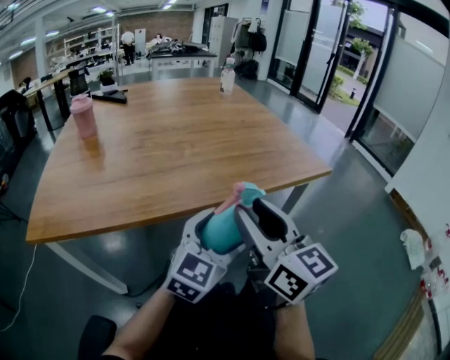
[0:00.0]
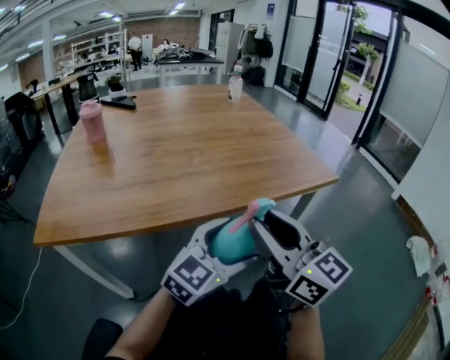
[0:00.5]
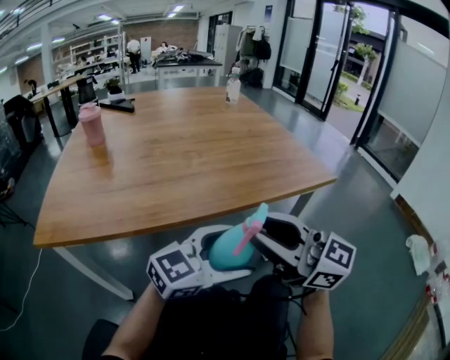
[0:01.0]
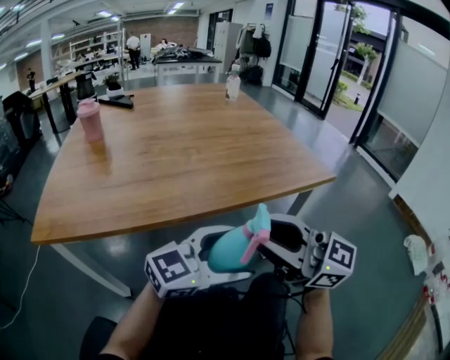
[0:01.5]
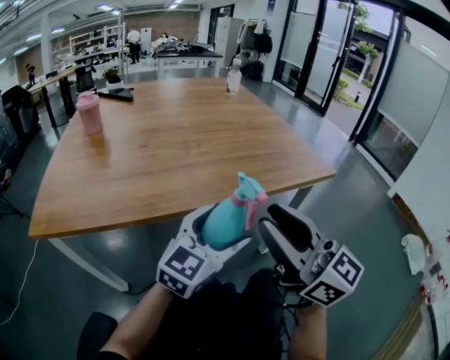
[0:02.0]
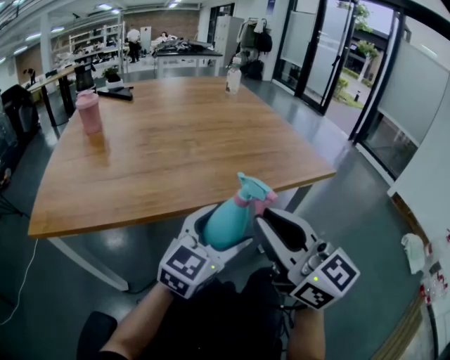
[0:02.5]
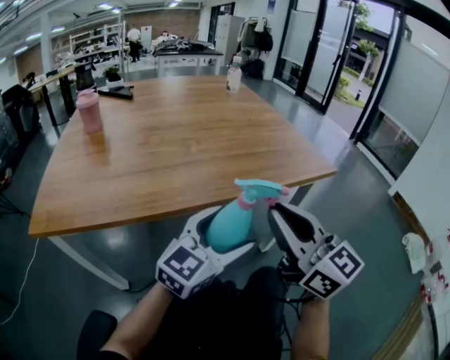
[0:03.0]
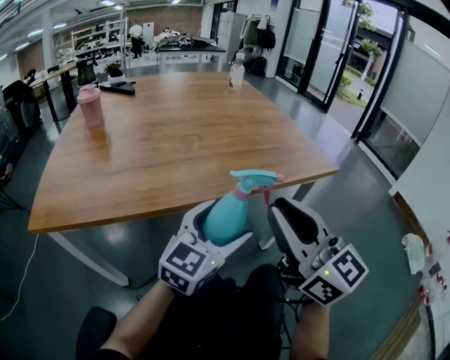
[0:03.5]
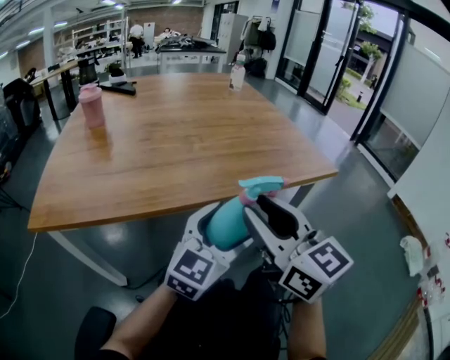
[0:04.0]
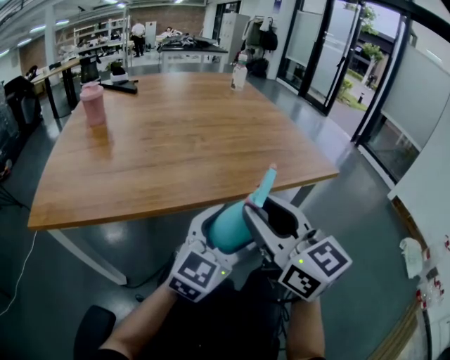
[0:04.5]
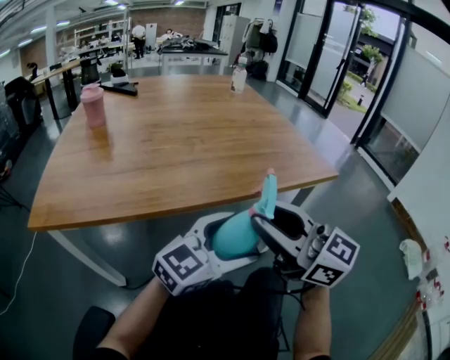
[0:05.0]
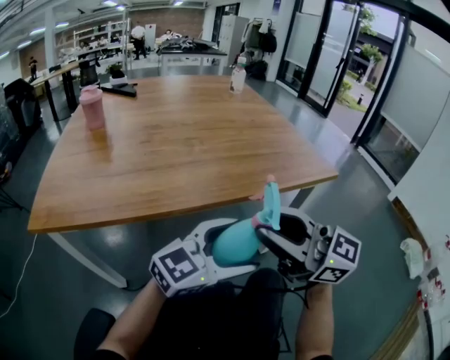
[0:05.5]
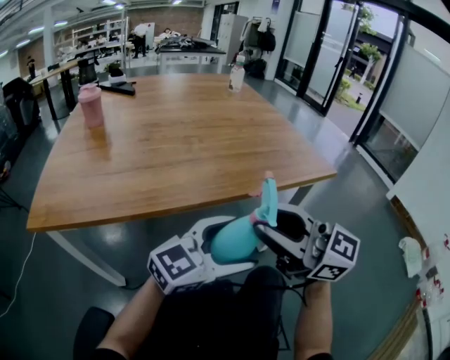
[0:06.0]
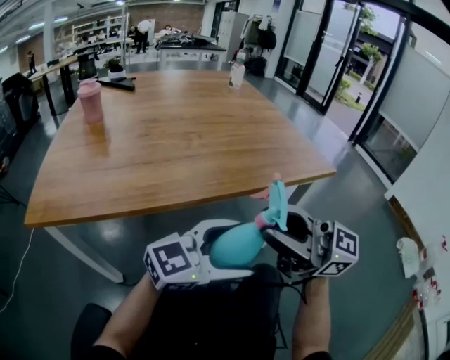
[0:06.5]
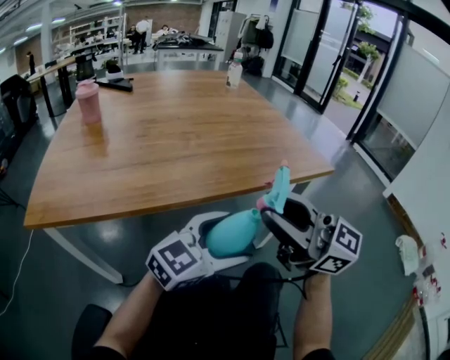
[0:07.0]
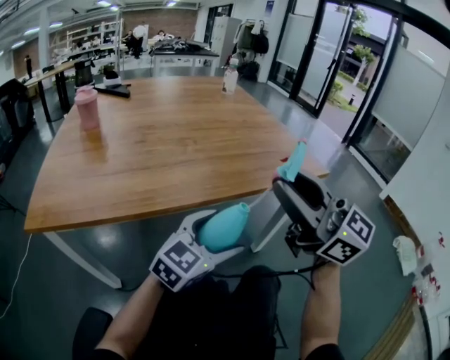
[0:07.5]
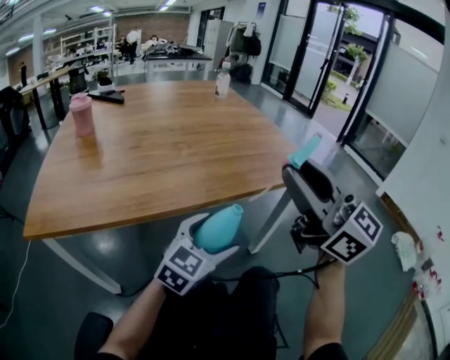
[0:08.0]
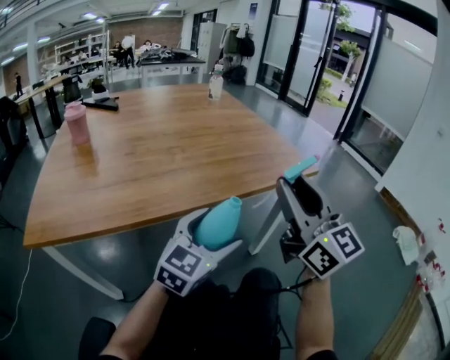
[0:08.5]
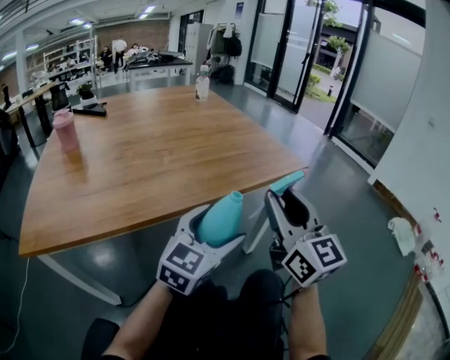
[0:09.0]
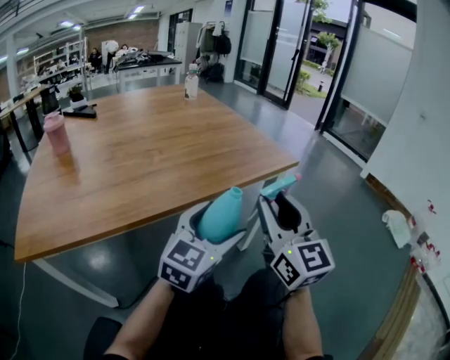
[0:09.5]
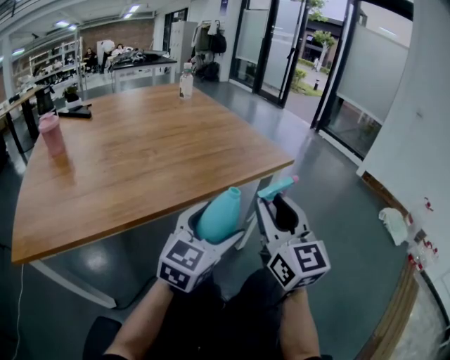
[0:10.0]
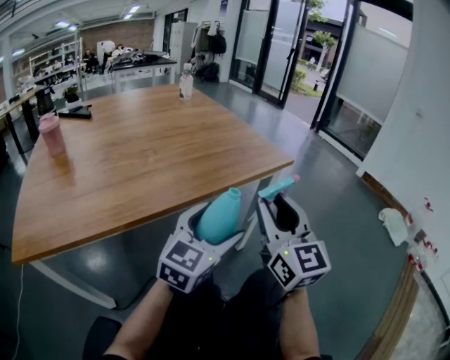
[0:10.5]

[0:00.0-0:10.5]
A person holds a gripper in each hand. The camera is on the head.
0:00.0 to 0:02.0: The right gripper changes place by about 5 cm.
0:02.0 to 0:04.0: The grippers make only small movements.
0:04.0 to 0:06.5: The right gripper swivels some 40 degrees, while the left gripper shifts by approximately 5 cm, and rotates roughly 40 degrees.
0:06.5 to 0:08.5: The left gripper moves approximately 5 cm, and swivels some 30 degrees. The right gripper moves roughly 10 cm, and rotates some 50 degrees.
0:08.5 to 0:10.5: The right gripper shifts some 5 cm downward, and swivels roughly 20 degrees. Meanwhile the left gripper shifts roughly 5 cm to the right.

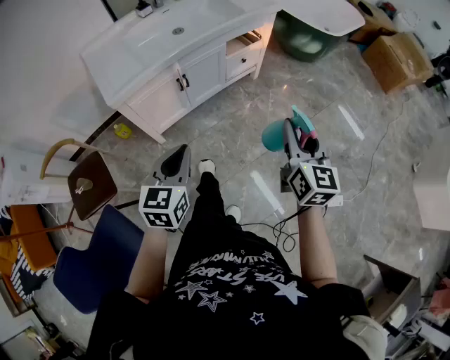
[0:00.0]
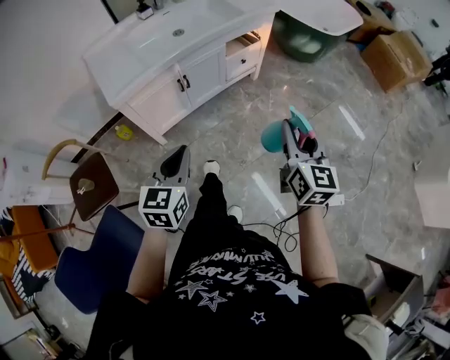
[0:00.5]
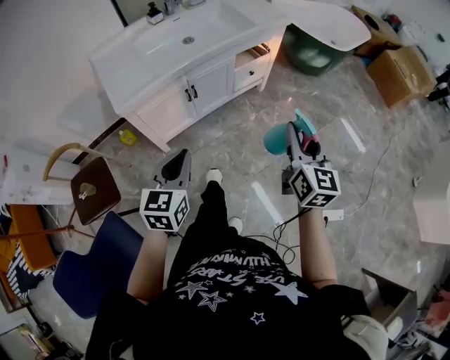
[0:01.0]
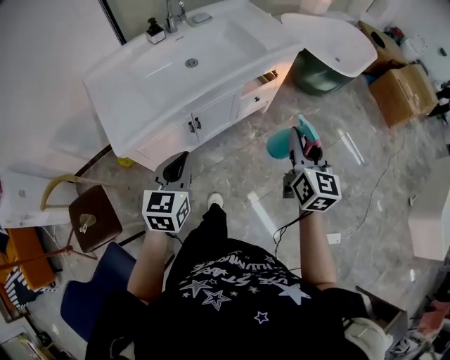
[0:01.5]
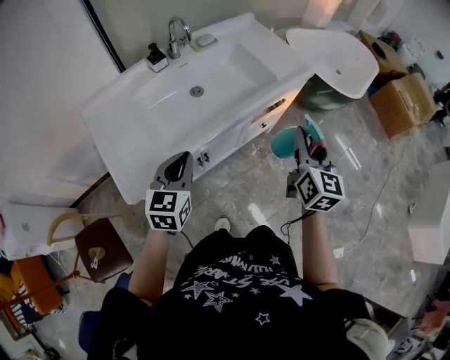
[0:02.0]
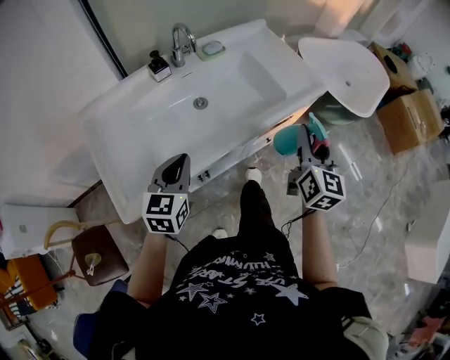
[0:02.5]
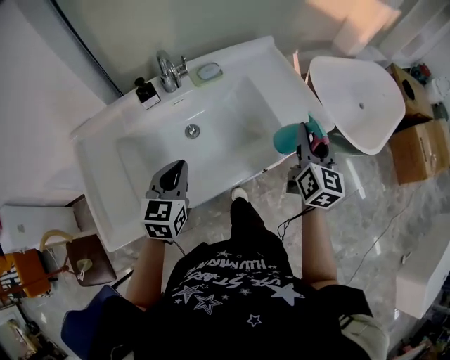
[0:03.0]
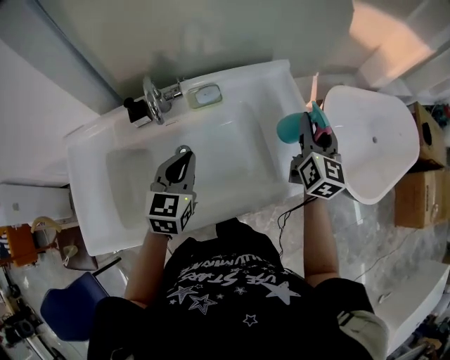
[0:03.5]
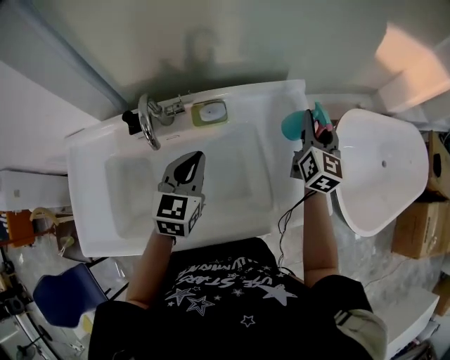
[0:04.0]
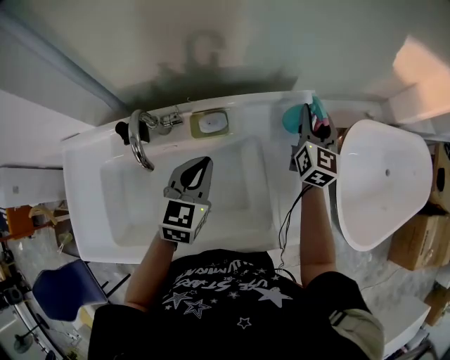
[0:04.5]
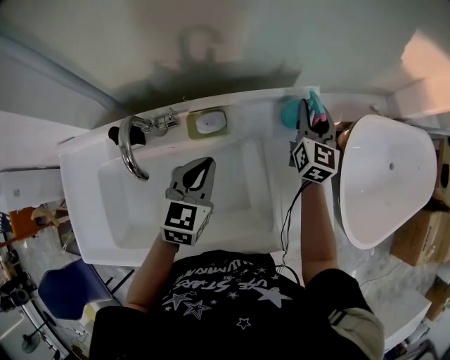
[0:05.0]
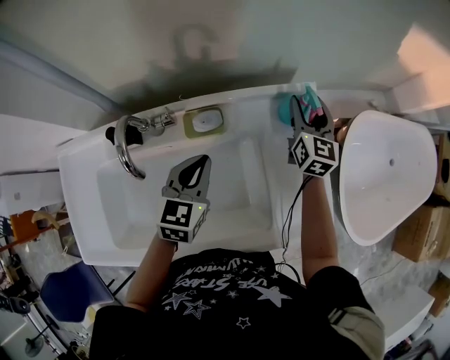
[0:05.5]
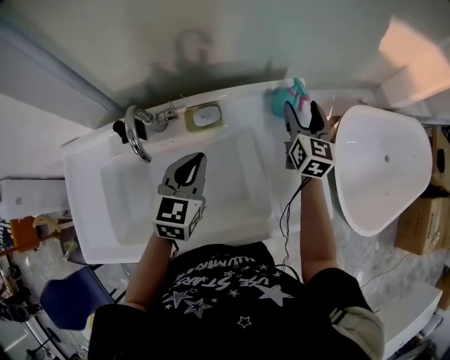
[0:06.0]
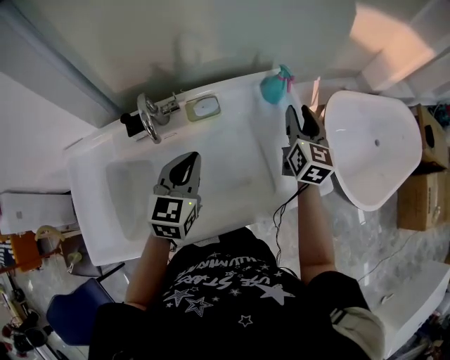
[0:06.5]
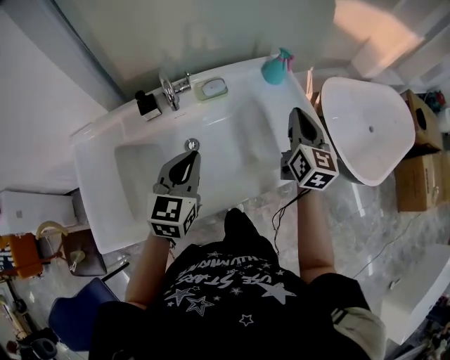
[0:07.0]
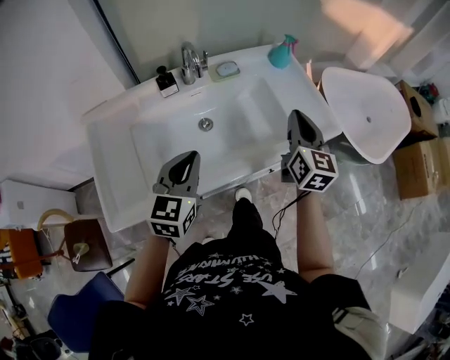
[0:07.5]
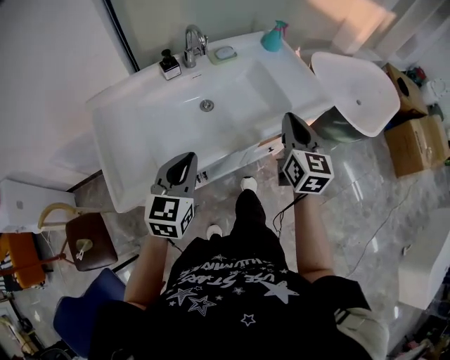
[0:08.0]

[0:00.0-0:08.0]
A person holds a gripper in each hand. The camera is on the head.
0:00.0 to 0:02.0: The right gripper goes approximately 35 cm forward; the left gripper is displaced forward and to the left by about 40 cm.
0:02.0 to 0:04.0: The pair of grippers is taken forward, roughly 60 cm. The right gripper swivels about 20 degrees; the left gripper changes its angle by approximately 20 degrees.
0:04.0 to 0:06.0: The right gripper opens.
0:06.0 to 0:08.0: Both grippers are carried backward, approximately 50 cm. The right gripper closes.

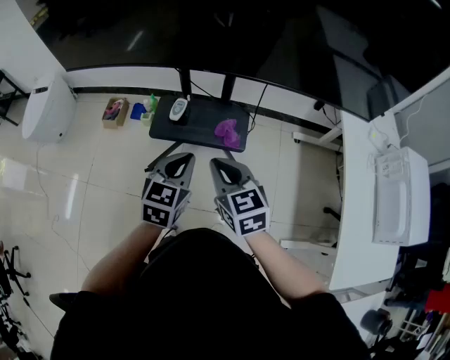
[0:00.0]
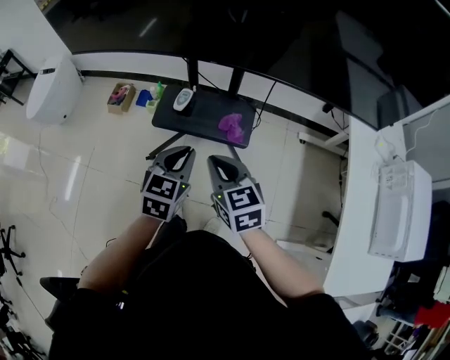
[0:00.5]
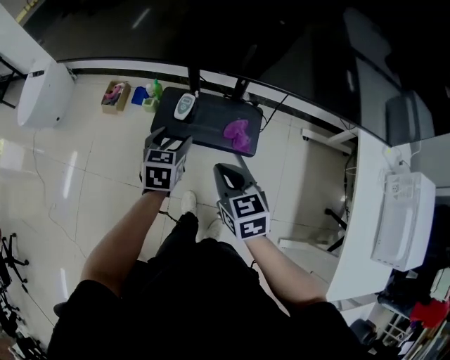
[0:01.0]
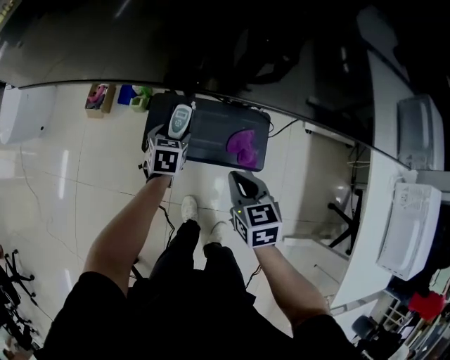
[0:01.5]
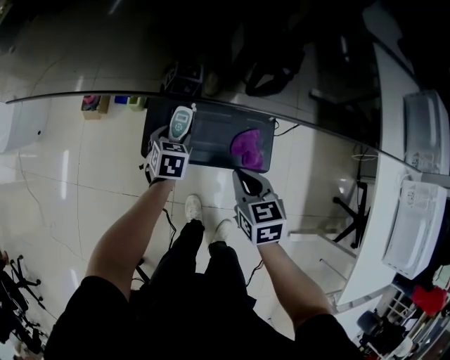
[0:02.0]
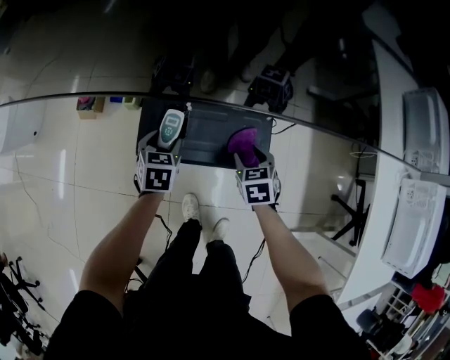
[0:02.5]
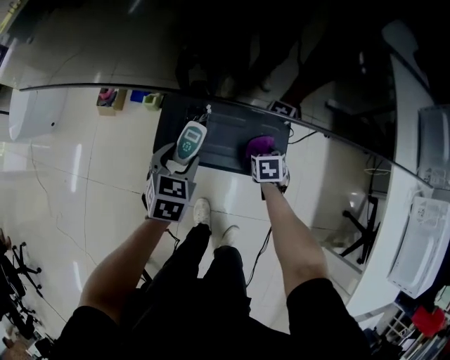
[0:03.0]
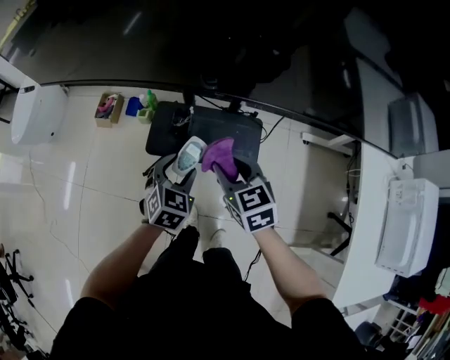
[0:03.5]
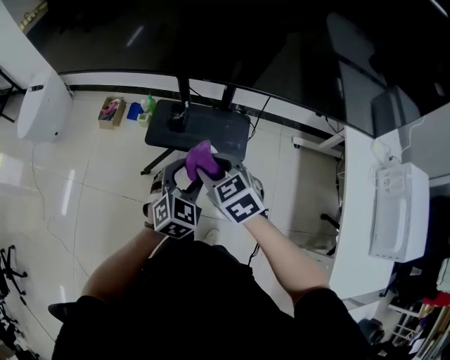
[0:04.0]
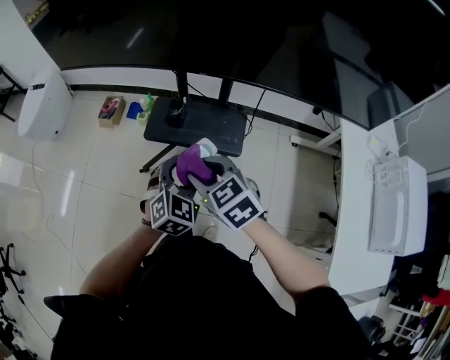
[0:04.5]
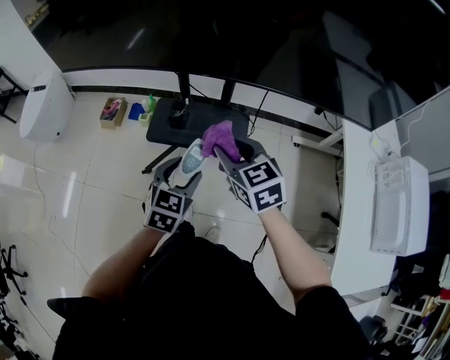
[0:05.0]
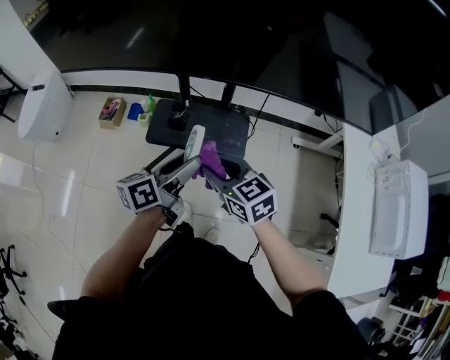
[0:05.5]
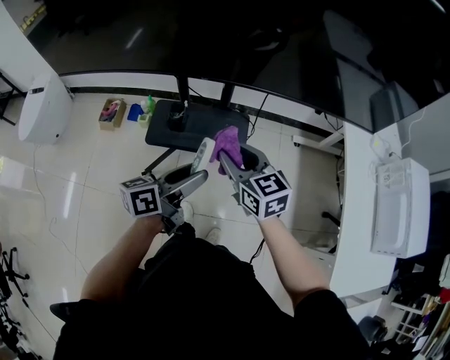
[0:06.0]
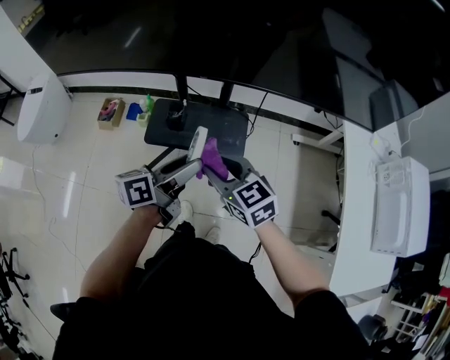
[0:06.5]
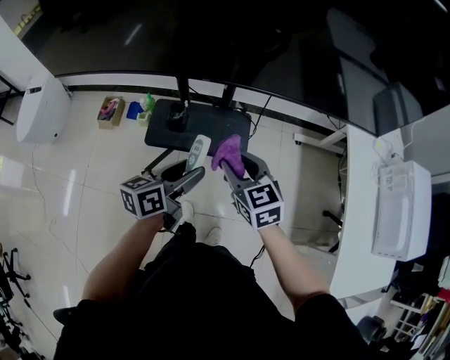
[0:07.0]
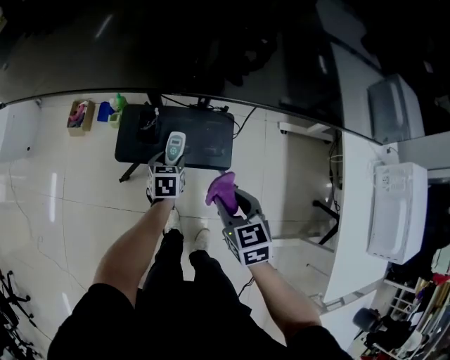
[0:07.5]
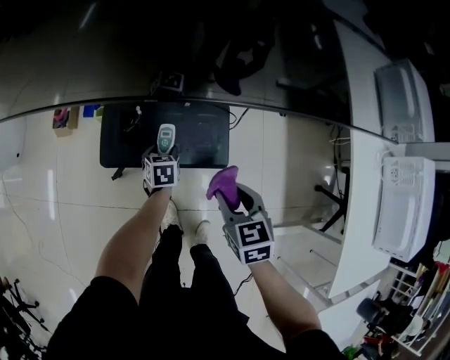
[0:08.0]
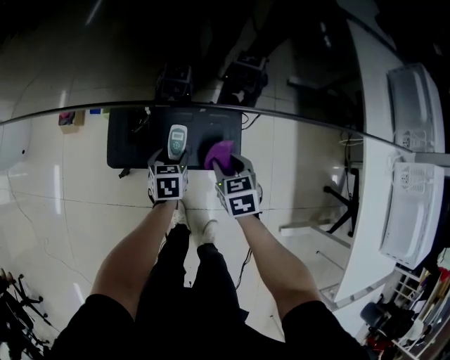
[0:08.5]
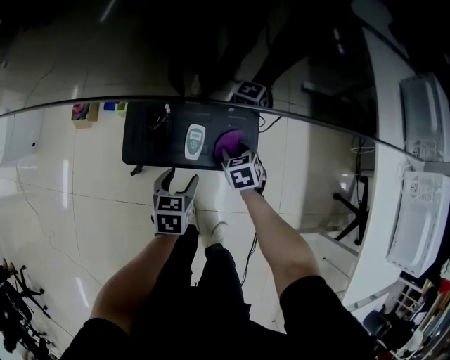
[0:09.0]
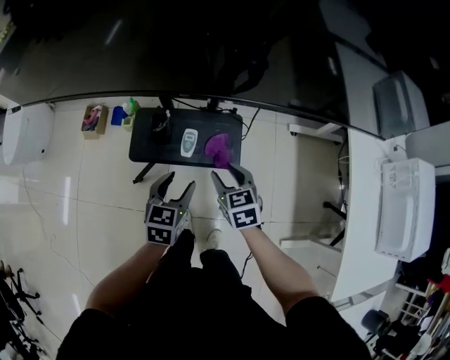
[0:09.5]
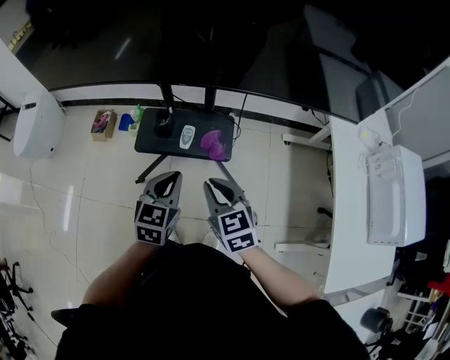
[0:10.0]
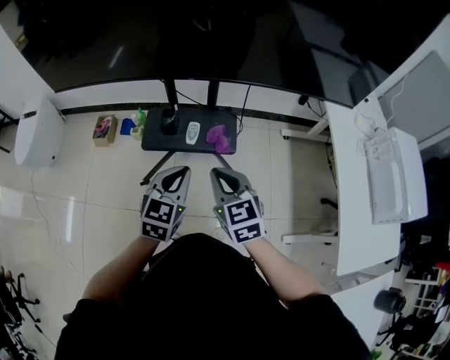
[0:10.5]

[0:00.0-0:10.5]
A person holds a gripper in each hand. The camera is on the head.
0:00.0 to 0:02.0: The right gripper travels downward and forward by roughly 25 cm, and turns by about 20 degrees. Meanwhile the left gripper travels forward and downward by about 40 cm, changes its angle by about 30 degrees, and opens up.
0:02.0 to 0:04.0: The right gripper moves upward and backward, roughly 20 cm, turns by roughly 30 degrees, and opens up. The left gripper travels backward, upward and to the right by approximately 35 cm, and turns by approximately 40 degrees.
0:04.0 to 0:06.5: The left gripper moves upward, approximately 5 cm, and rotates around the line of its fingers by some 70 degrees, counterclockwise from behind. Meanwhile the right gripper goes left and right, roughly 10 cm each way, reversing 3 times.
0:06.5 to 0:08.5: The two grippers go some 35 cm downward and forward. The left gripper tips its fingers downward by approximately 50 degrees, while the right gripper rotates roughly 40 degrees.
0:08.5 to 0:10.5: Both grippers move upward and backward, about 40 cm. The left gripper turns by about 40 degrees, and closes its fingers; the right gripper changes its angle by some 30 degrees, and closes up.
